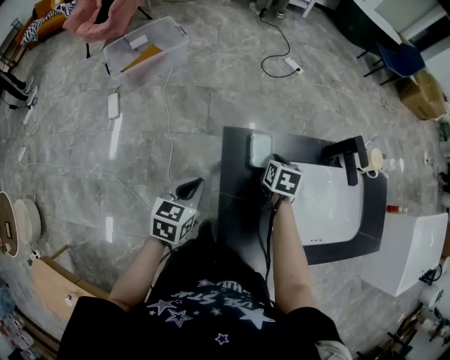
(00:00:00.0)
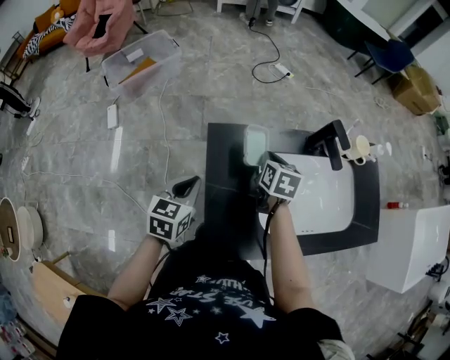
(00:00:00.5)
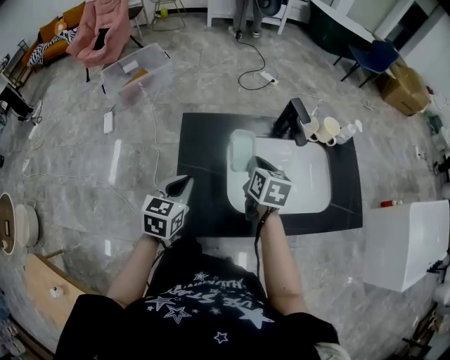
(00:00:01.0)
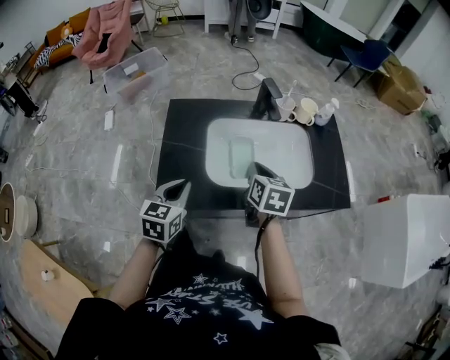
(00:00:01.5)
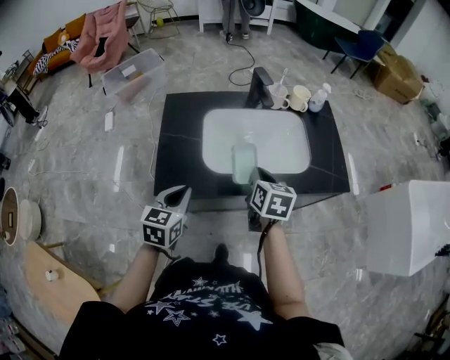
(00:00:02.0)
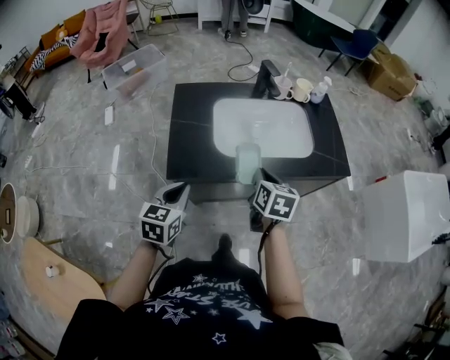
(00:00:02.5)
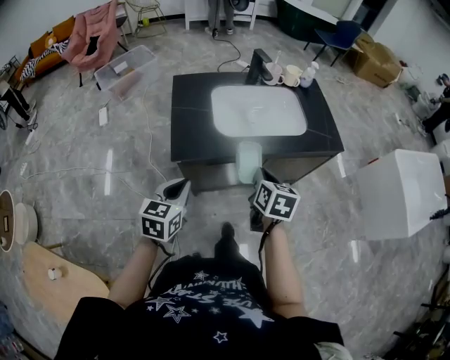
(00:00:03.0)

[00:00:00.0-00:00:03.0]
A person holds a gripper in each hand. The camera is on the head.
00:00:00.0 to 00:00:01.5: The left gripper shifts some 30 cm to the right and backward. The right gripper travels backward, to the right and upward by approximately 35 cm.
00:00:01.5 to 00:00:03.0: The two grippers go about 20 cm backward.

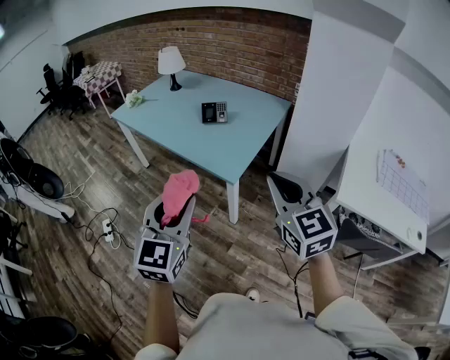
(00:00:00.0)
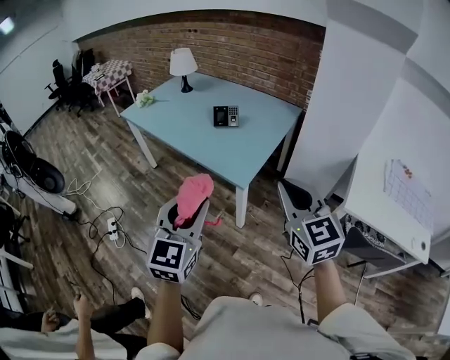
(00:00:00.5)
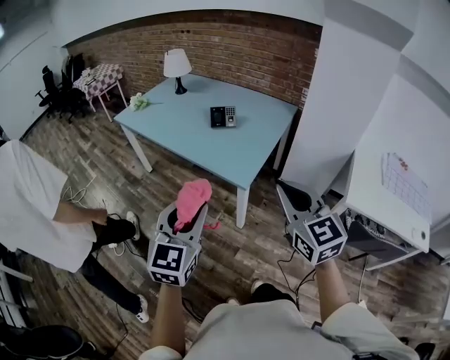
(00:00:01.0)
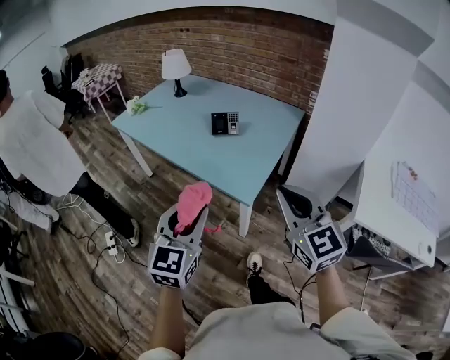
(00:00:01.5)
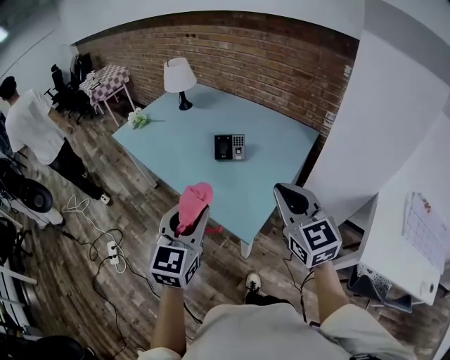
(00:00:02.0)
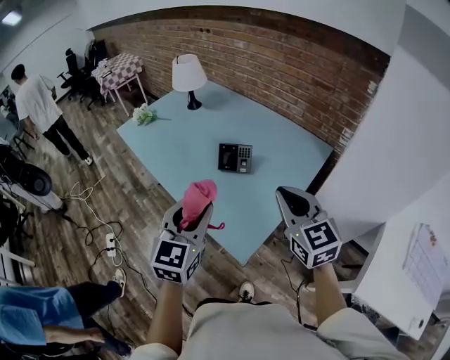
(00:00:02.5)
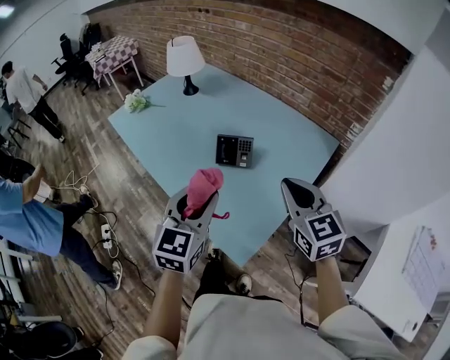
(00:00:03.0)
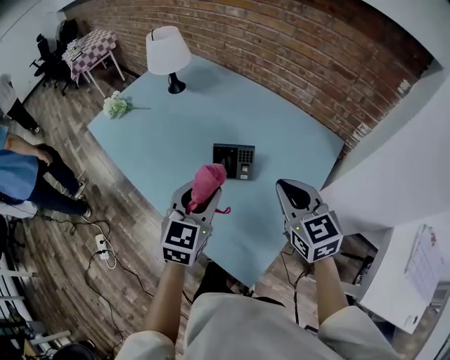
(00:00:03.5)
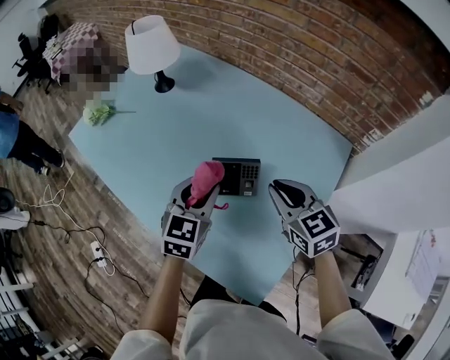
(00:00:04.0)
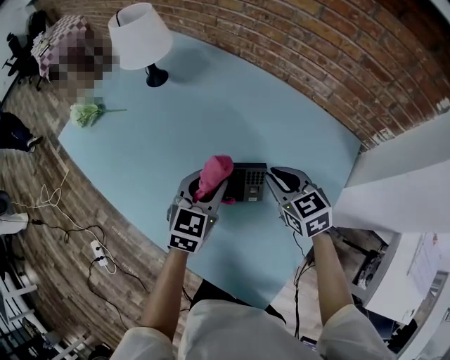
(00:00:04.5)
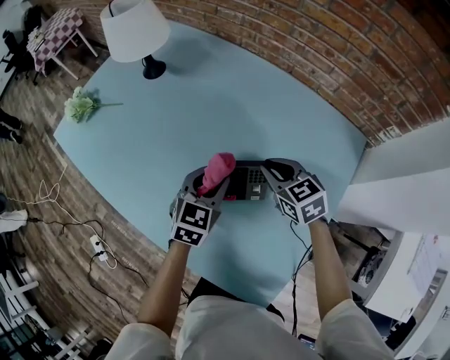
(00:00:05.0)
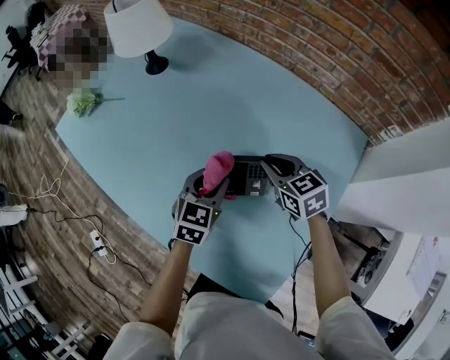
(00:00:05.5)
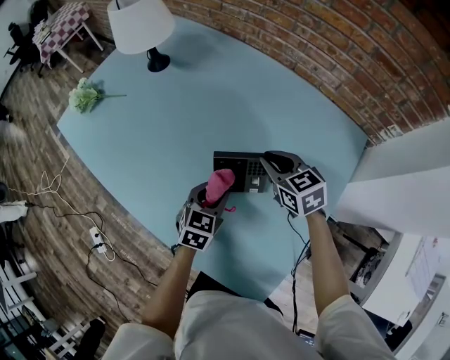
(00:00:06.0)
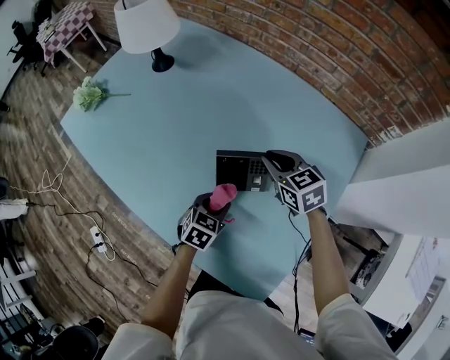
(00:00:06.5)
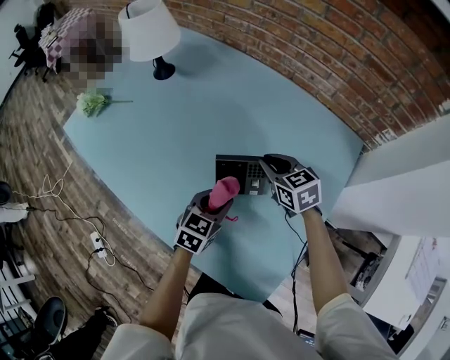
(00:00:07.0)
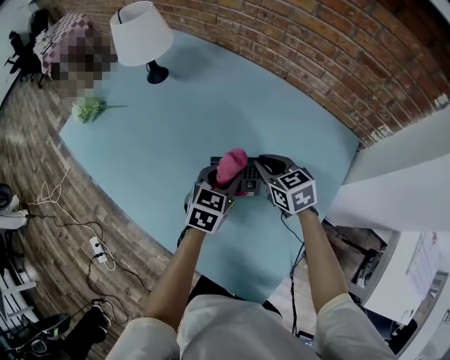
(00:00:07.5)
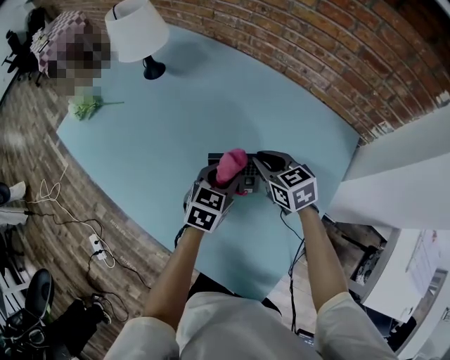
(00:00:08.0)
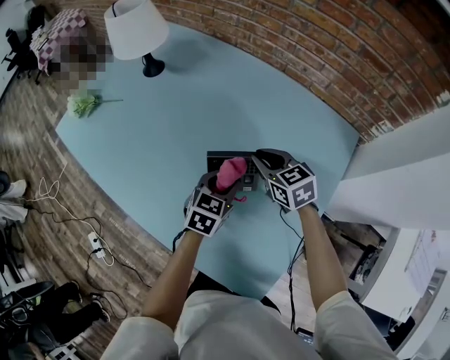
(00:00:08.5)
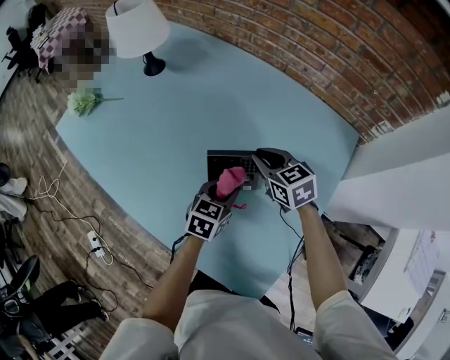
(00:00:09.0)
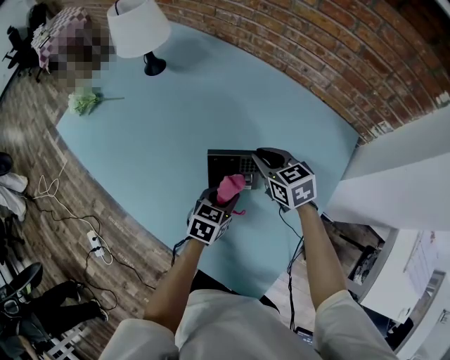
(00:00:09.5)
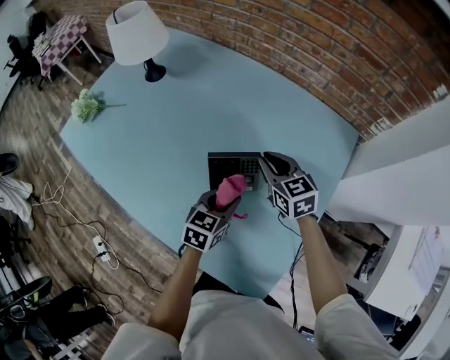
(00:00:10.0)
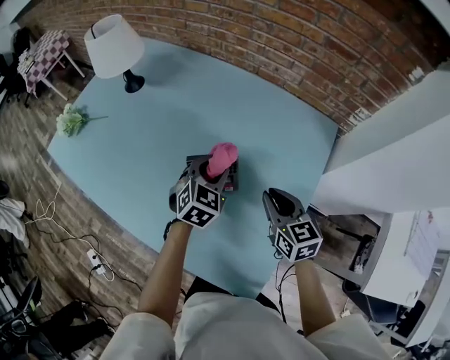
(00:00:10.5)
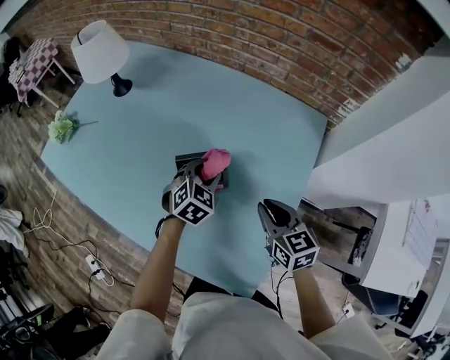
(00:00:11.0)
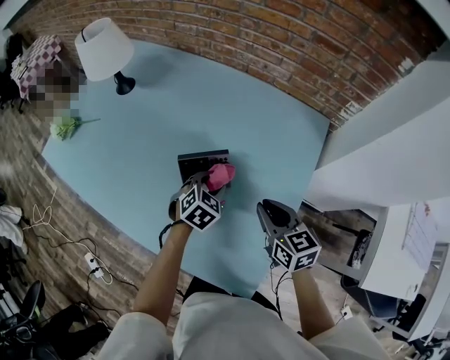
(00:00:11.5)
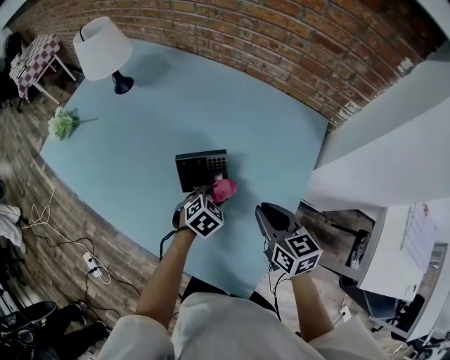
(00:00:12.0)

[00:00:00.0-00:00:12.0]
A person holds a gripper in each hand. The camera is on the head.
00:00:00.0 to 00:00:02.0: The grippers both shift forward by about 25 cm.
00:00:02.0 to 00:00:04.0: The two grippers go approximately 40 cm forward and downward. The right gripper changes its angle by roughly 20 degrees.
00:00:04.0 to 00:00:06.0: The left gripper goes approximately 15 cm downward, while the right gripper moves downward and forward, some 15 cm.
00:00:06.0 to 00:00:08.0: The left gripper travels upward by about 5 cm.
00:00:08.0 to 00:00:10.0: The left gripper travels backward by approximately 5 cm.
00:00:10.0 to 00:00:12.0: The left gripper is displaced to the right and downward by some 10 cm, and turns by approximately 40 degrees, while the right gripper is displaced backward and to the right by roughly 15 cm.

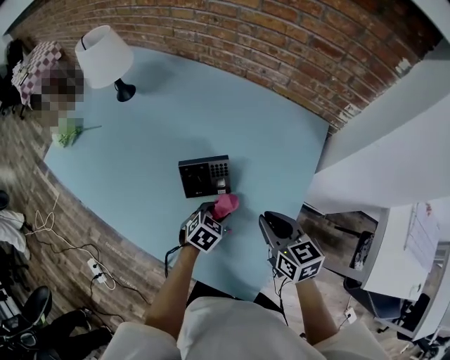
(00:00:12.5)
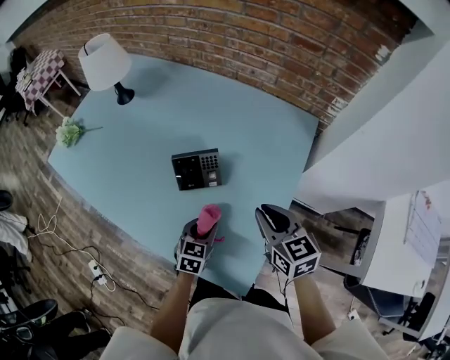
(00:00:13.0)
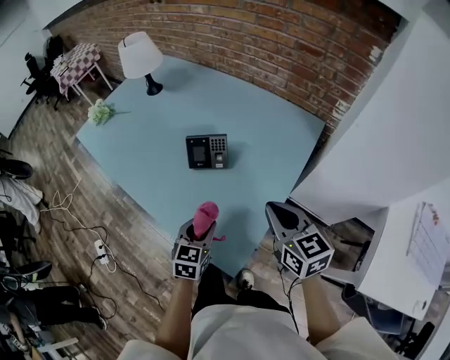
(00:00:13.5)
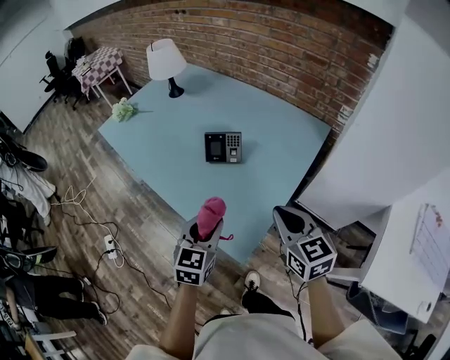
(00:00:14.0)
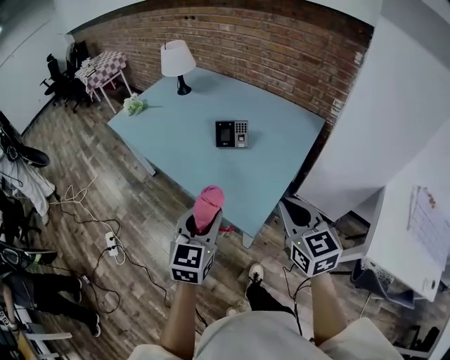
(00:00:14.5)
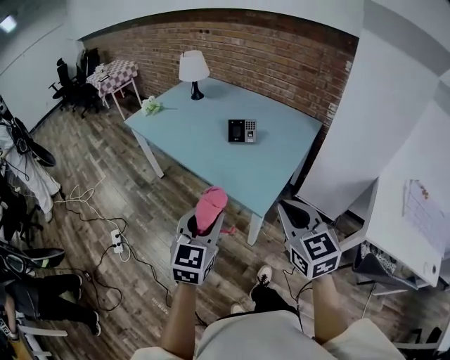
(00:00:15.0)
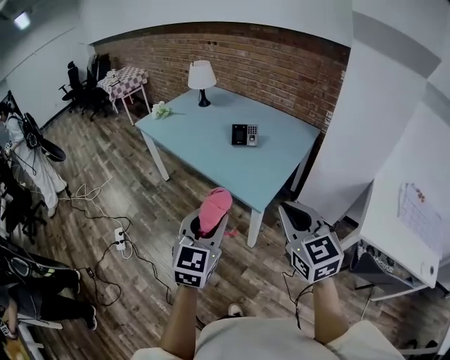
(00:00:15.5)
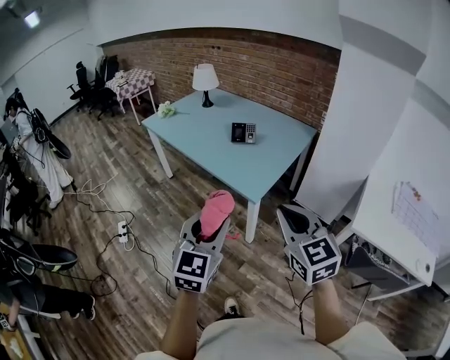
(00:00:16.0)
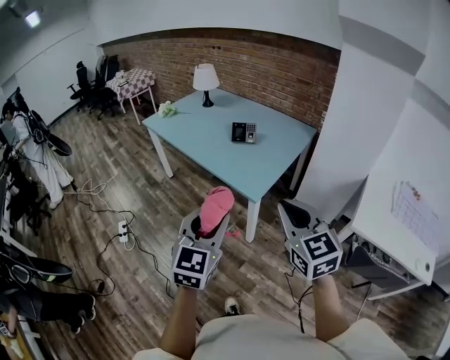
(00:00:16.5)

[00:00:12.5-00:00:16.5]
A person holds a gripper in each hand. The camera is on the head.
00:00:12.5 to 00:00:14.5: The grippers both shift backward and upward by roughly 40 cm. The left gripper tilts its fingers approximately 40 degrees upward. The right gripper rotates about 20 degrees.
00:00:14.5 to 00:00:16.5: The grippers both shift backward by about 30 cm.

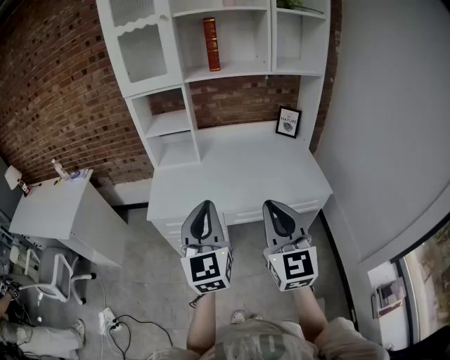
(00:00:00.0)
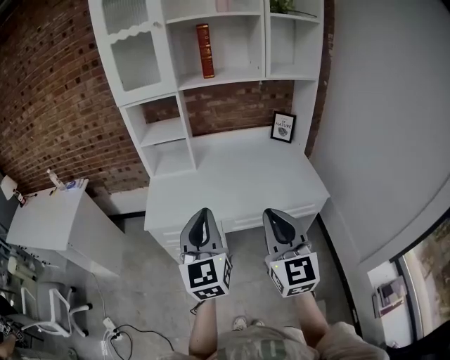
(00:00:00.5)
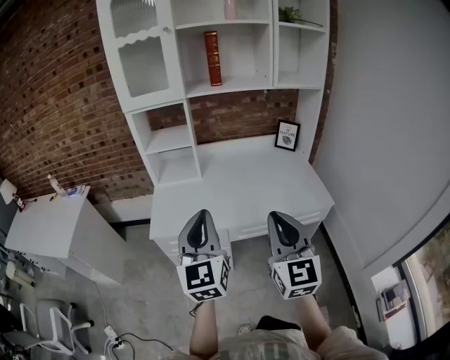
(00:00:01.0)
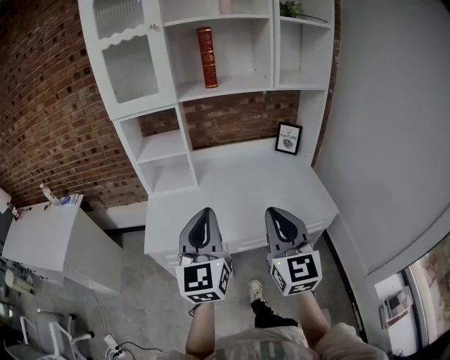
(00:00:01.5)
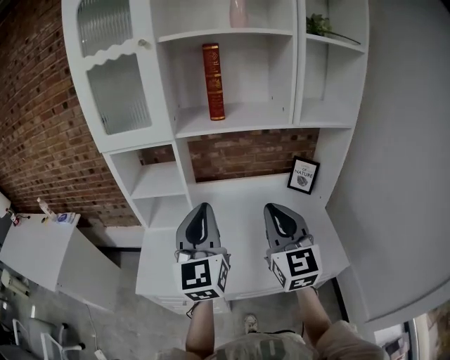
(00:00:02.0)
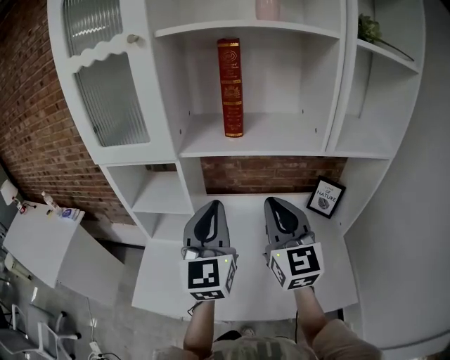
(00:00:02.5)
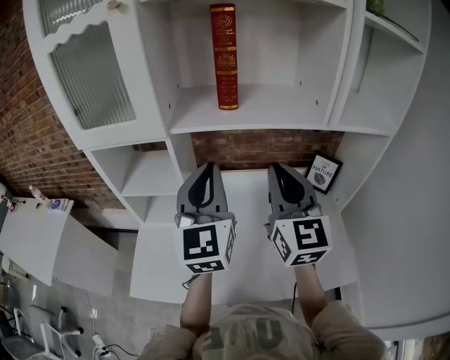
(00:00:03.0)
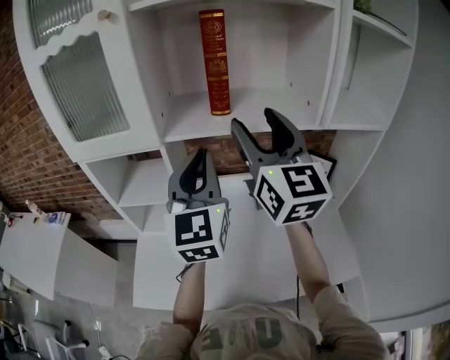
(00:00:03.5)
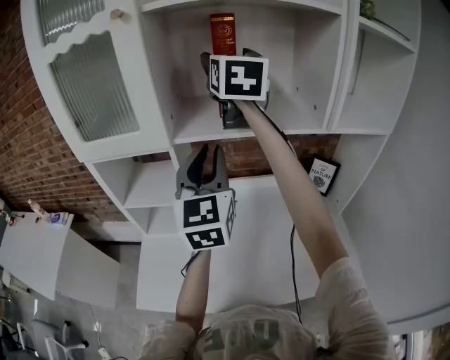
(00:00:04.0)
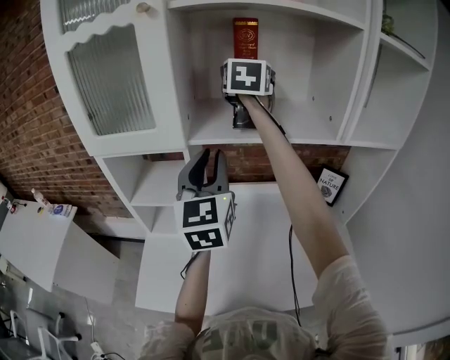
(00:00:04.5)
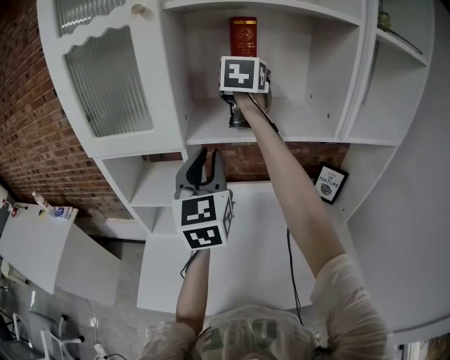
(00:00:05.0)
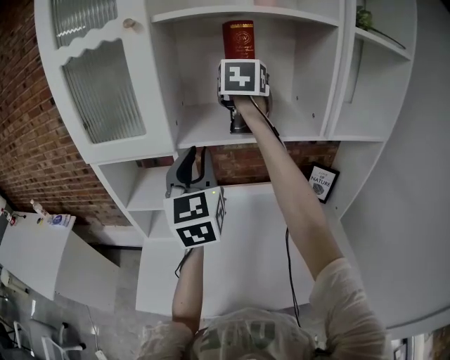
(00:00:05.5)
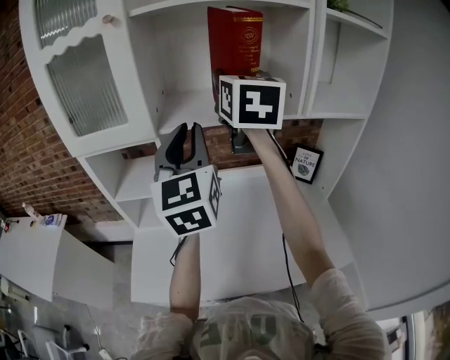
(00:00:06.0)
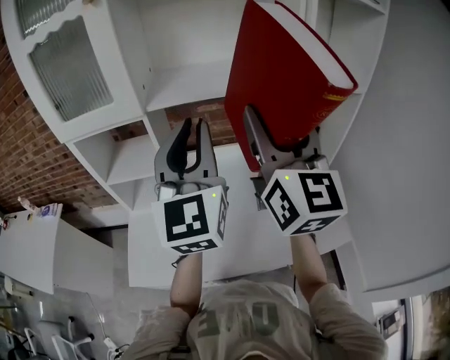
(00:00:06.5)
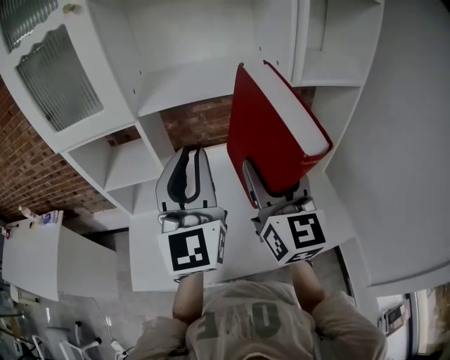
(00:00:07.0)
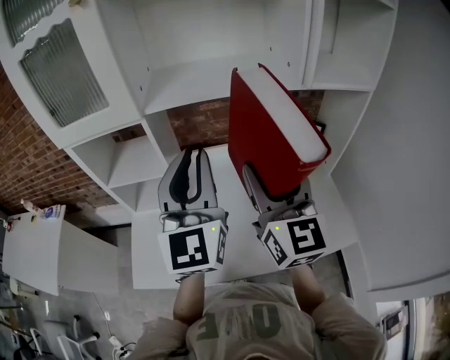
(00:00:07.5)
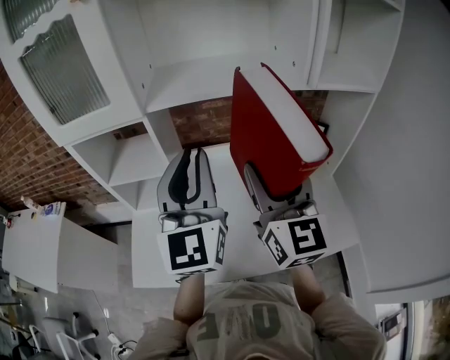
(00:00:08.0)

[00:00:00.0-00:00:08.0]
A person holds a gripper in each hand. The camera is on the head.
00:00:00.0 to 00:00:02.0: Both grippers move forward, roughly 30 cm.
00:00:02.0 to 00:00:04.0: The right gripper travels forward and upward by approximately 40 cm, and opens its fingers; the left gripper shifts some 20 cm forward.
00:00:04.0 to 00:00:06.0: The left gripper goes approximately 5 cm upward. Meanwhile the right gripper shifts about 10 cm backward and to the right, and closes its fingers.
00:00:06.0 to 00:00:08.0: The left gripper shifts some 10 cm downward and backward. Meanwhile the right gripper heads downward and backward, covering about 25 cm.
